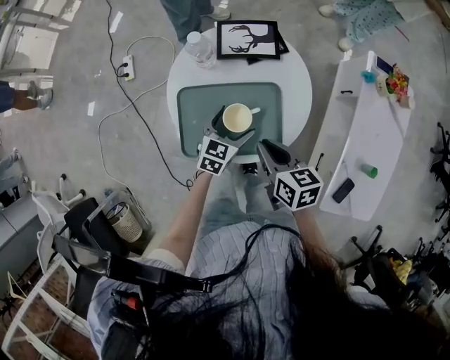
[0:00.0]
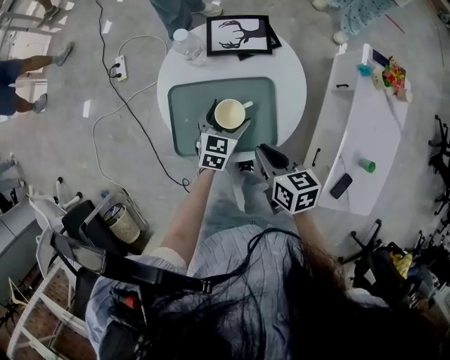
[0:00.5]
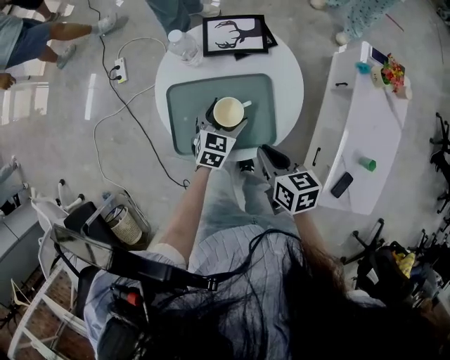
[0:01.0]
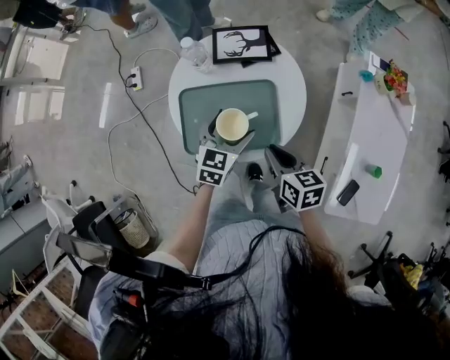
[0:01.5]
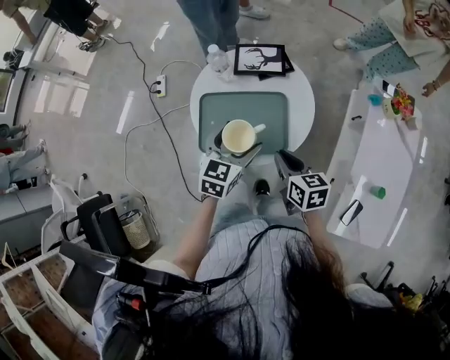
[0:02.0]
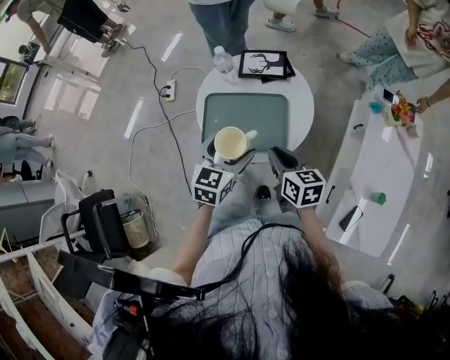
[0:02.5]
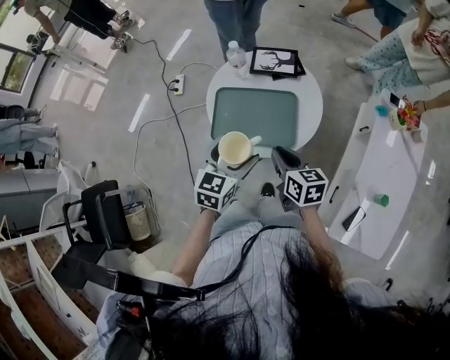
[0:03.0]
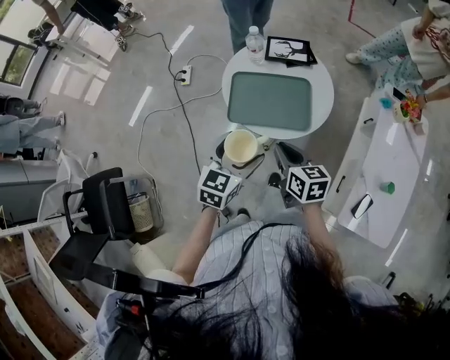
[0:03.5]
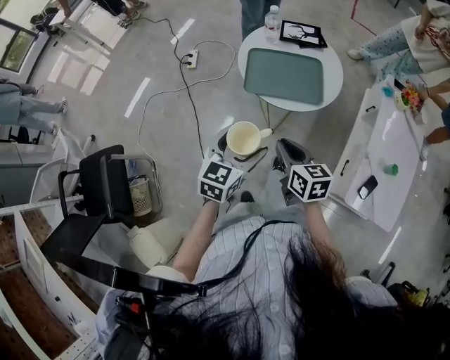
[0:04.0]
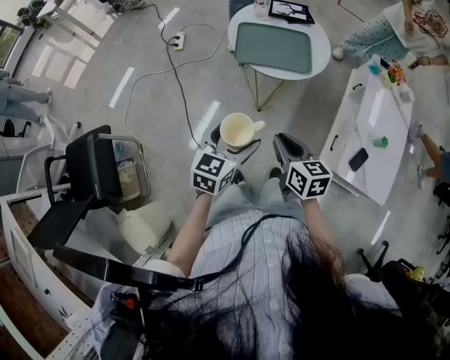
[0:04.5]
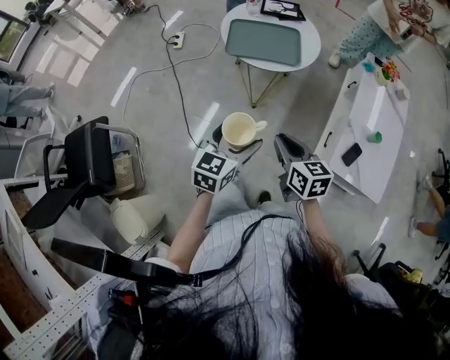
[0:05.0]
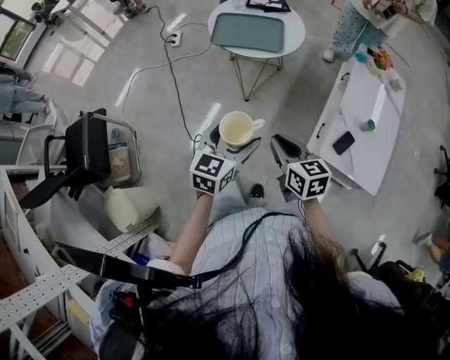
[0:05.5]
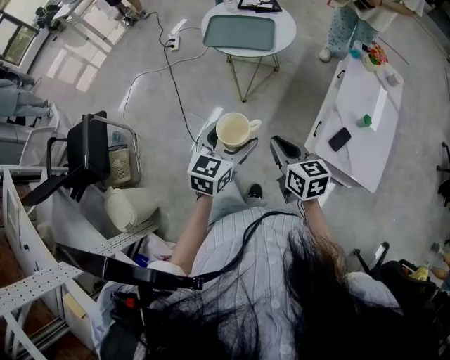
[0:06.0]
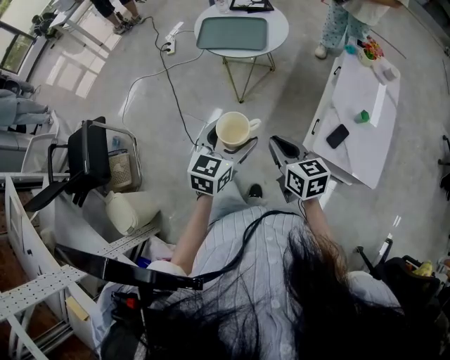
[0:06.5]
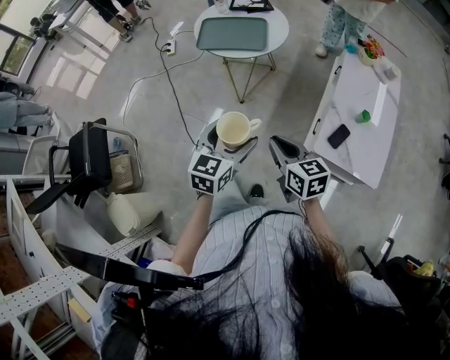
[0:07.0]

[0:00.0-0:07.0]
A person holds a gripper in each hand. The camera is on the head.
0:00.0 to 0:02.0: The right gripper ends up about 5 cm from where it was; the left gripper shifts about 15 cm upward.
0:02.0 to 0:03.5: The left gripper shifts approximately 20 cm backward and to the left; the right gripper shifts about 15 cm to the left and backward.
0:03.5 to 0:05.0: The two grippers go approximately 25 cm backward.
0:05.0 to 0:07.0: The grippers both shift to the right and backward by some 15 cm.

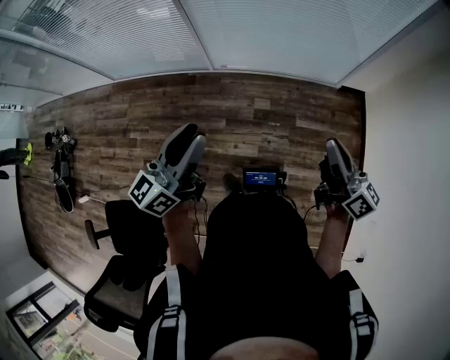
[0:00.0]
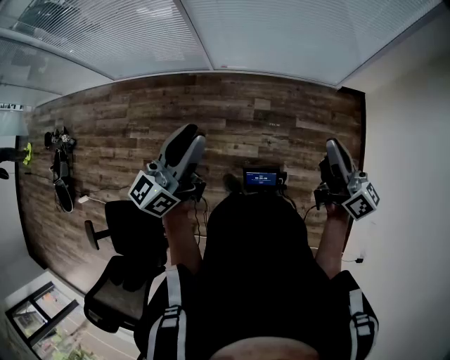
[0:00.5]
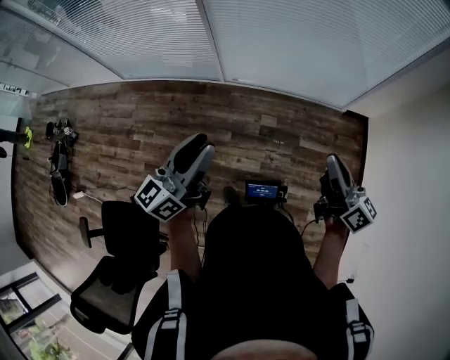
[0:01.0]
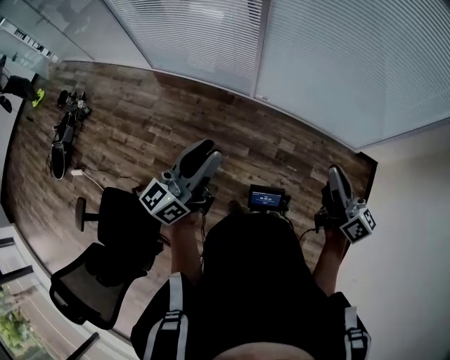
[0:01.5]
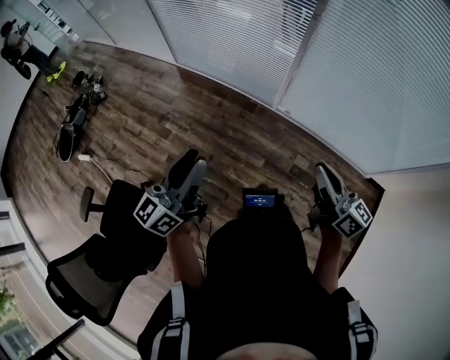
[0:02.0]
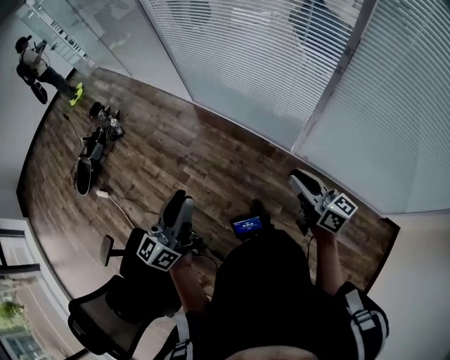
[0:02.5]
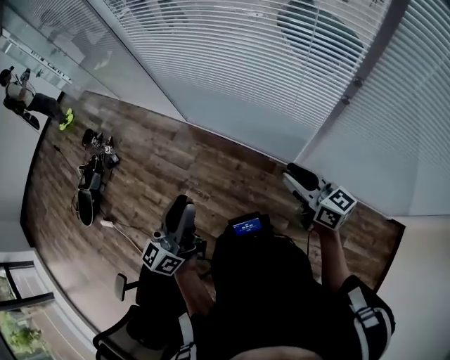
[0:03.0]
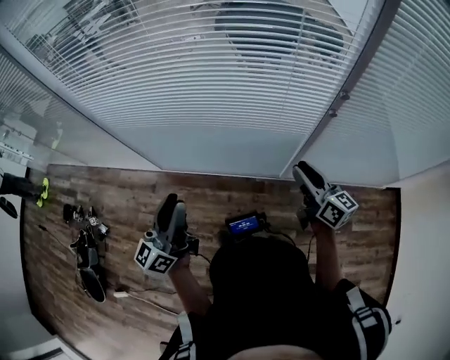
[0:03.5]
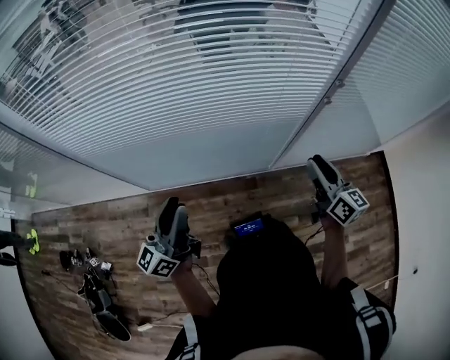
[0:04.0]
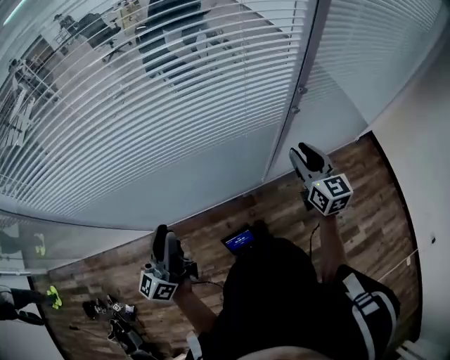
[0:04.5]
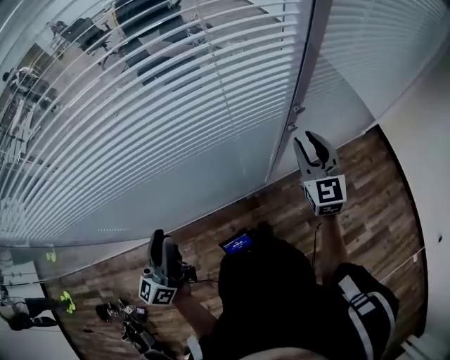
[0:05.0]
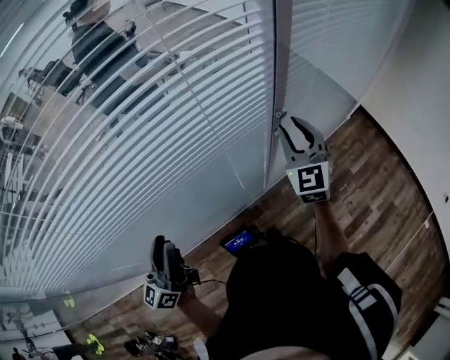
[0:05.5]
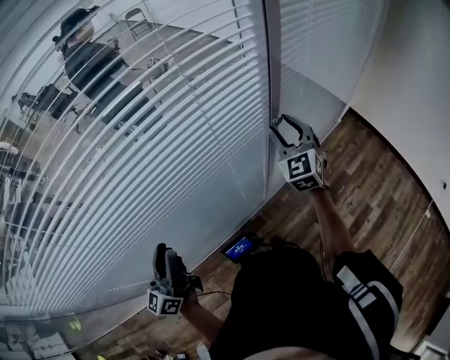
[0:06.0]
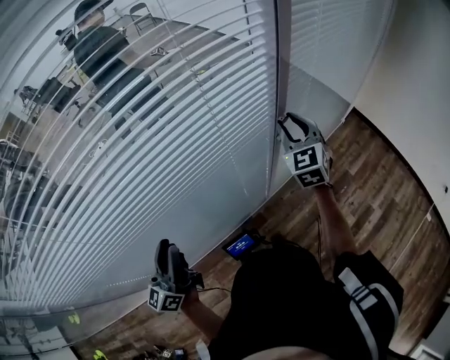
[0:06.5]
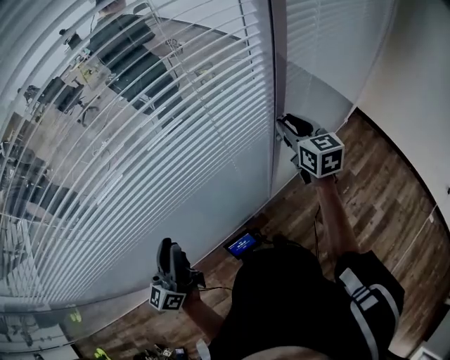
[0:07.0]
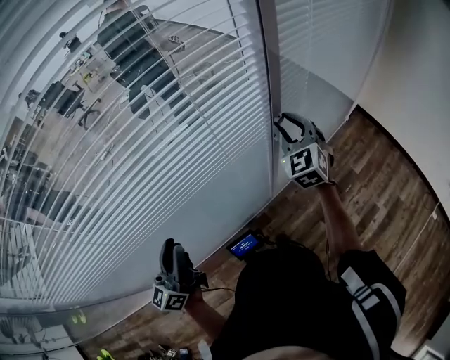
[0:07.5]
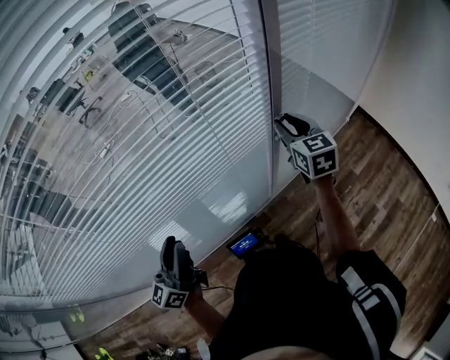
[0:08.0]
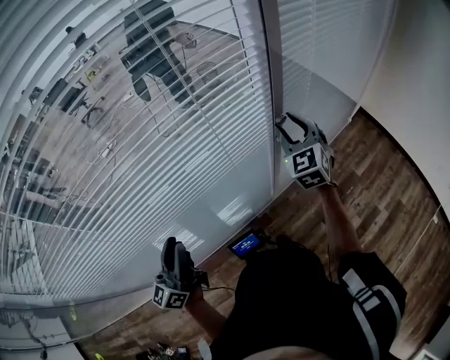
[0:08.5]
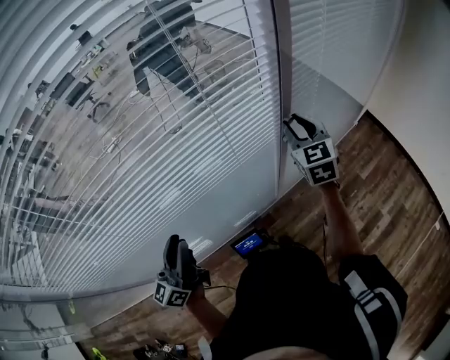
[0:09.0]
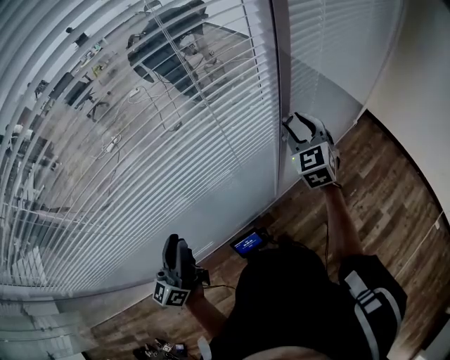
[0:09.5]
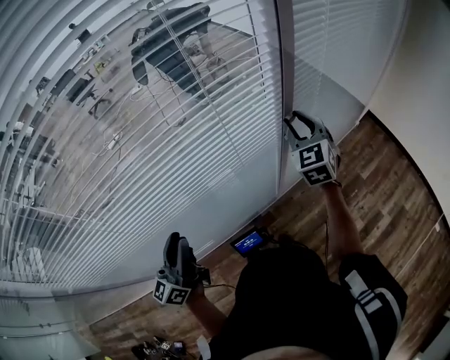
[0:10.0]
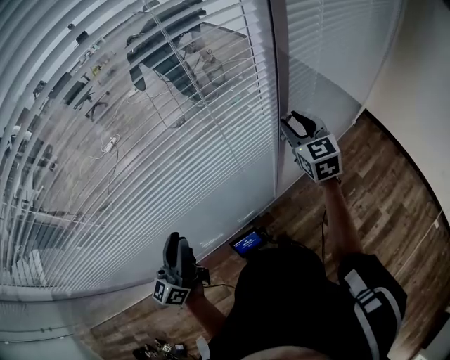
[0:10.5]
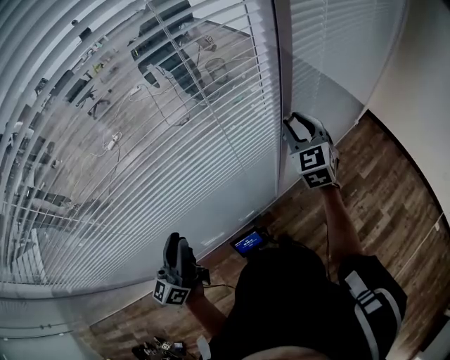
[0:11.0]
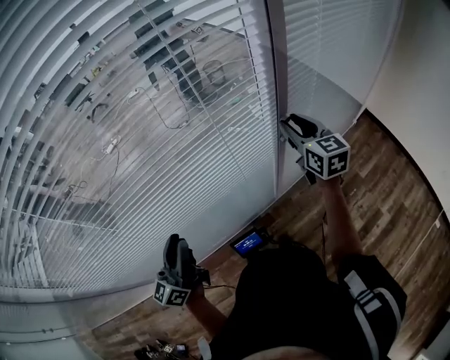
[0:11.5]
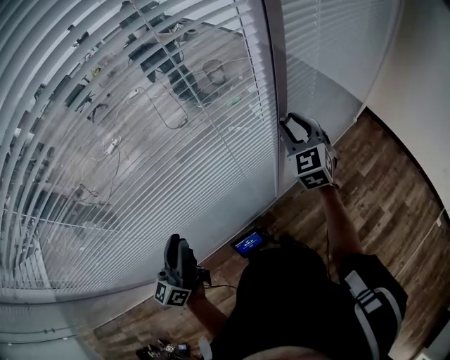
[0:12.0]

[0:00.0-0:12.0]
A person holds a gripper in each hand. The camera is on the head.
0:00.0 to 0:02.0: The left gripper ends up some 25 cm from where it was, and turns by roughly 30 degrees. Meanwhile the right gripper moves some 30 cm, and swivels about 30 degrees.
0:02.0 to 0:04.0: The pair of grippers is taken some 50 cm. The right gripper rotates about 50 degrees, and opens its fingers. The left gripper turns by some 30 degrees.
0:04.0 to 0:06.0: The left gripper ends up some 20 cm from where it was. The right gripper changes place by some 25 cm, and rotates some 70 degrees.
0:06.0 to 0:08.0: The right gripper rotates about 30 degrees.
0:08.0 to 0:10.0: The right gripper turns by some 20 degrees.

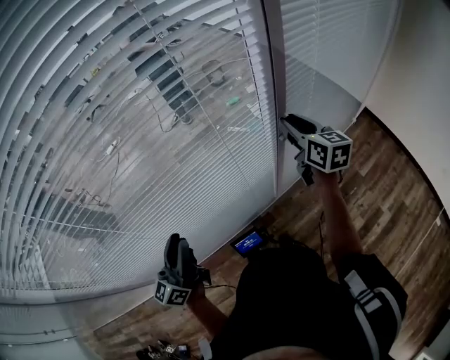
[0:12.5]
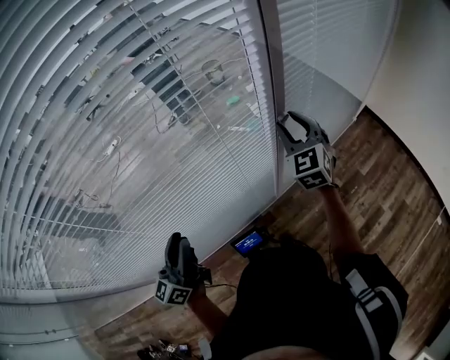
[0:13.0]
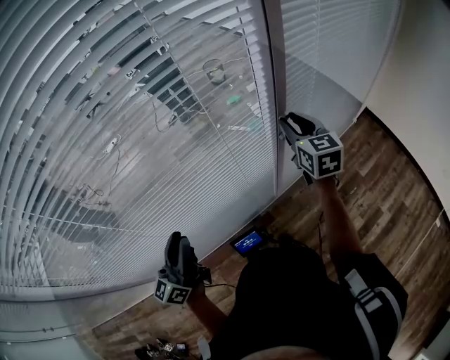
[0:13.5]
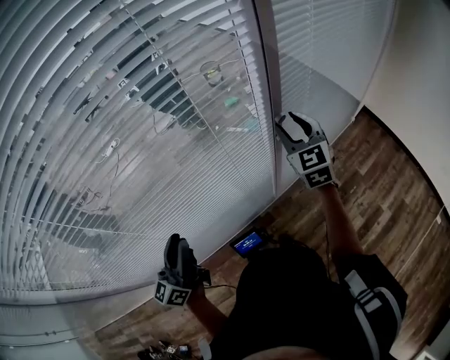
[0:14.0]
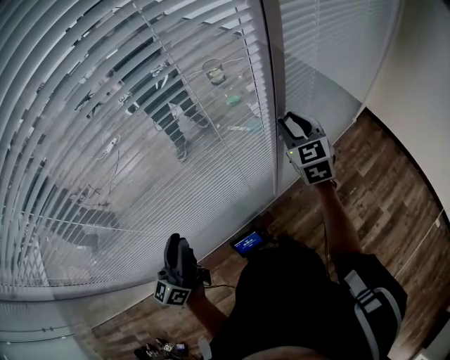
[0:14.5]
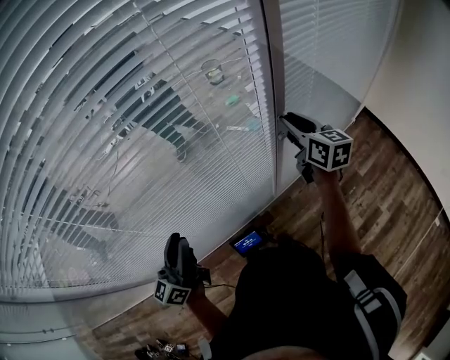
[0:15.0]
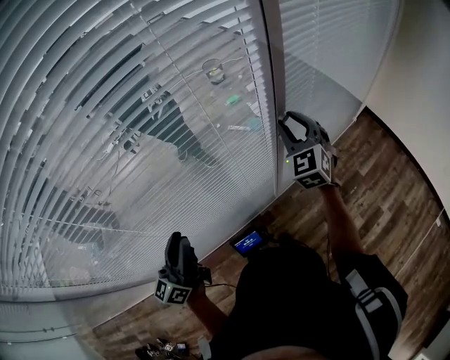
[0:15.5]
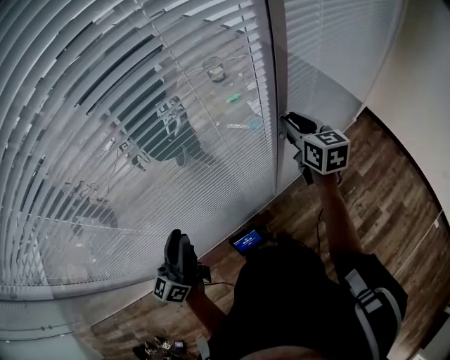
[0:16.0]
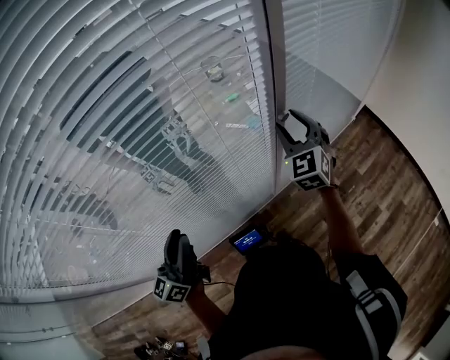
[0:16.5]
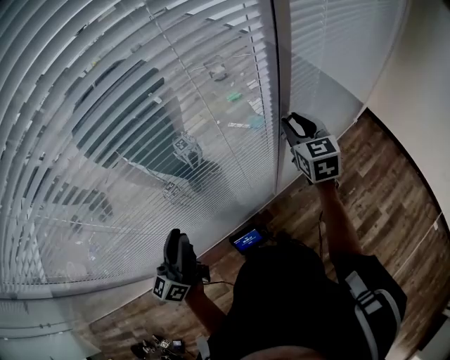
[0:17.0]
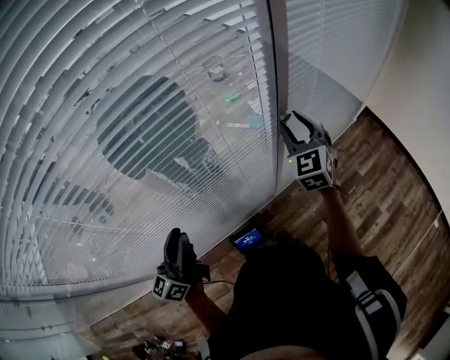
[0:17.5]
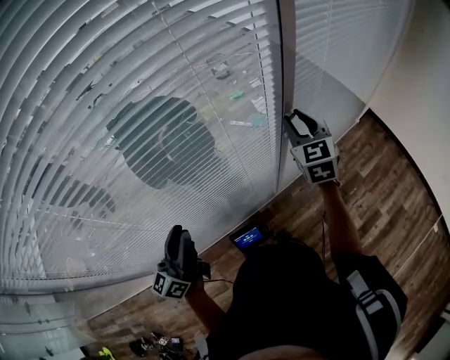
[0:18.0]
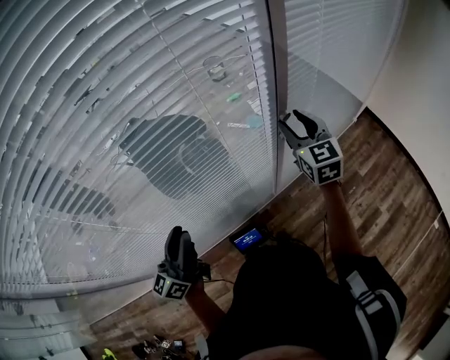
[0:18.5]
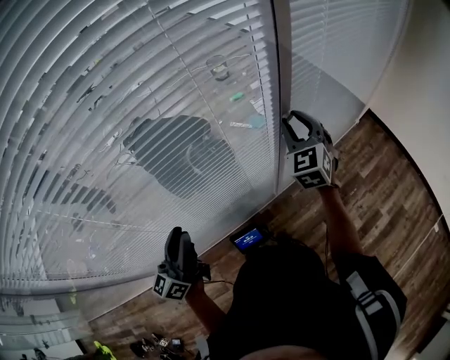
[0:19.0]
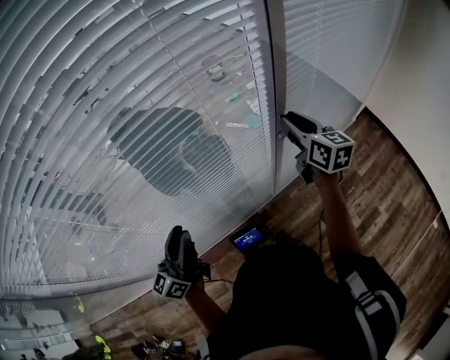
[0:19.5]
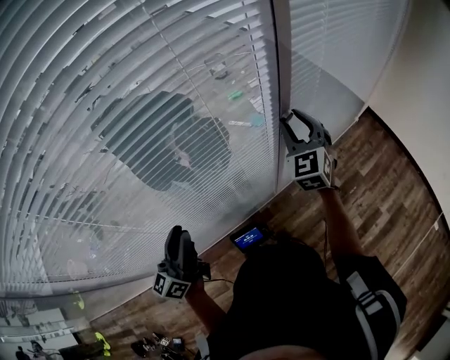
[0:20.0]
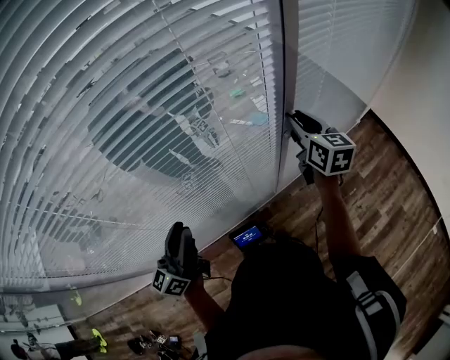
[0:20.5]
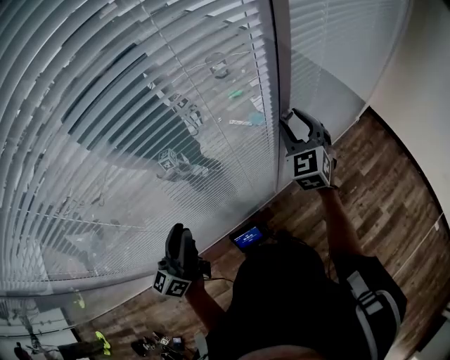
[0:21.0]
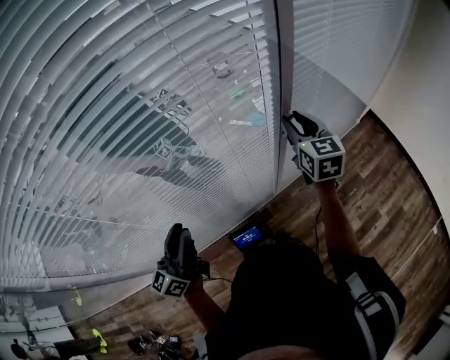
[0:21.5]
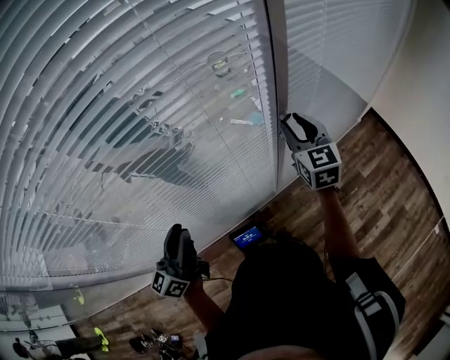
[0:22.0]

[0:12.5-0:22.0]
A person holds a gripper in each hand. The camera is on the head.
0:12.5 to 0:14.5: The right gripper rotates about 30 degrees.
0:20.0 to 0:22.0: The right gripper changes its angle by some 30 degrees.
